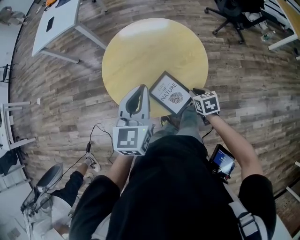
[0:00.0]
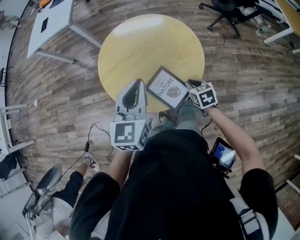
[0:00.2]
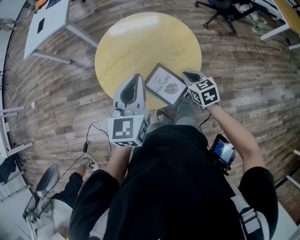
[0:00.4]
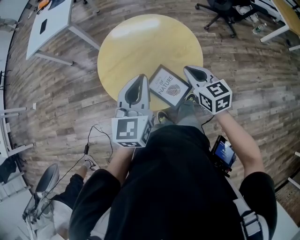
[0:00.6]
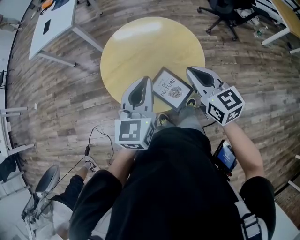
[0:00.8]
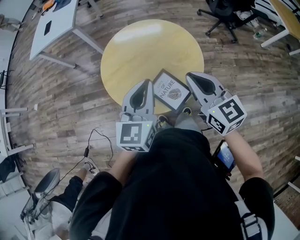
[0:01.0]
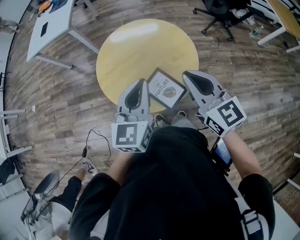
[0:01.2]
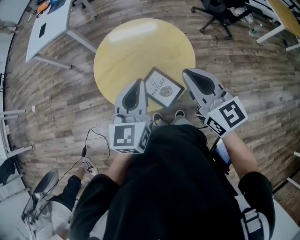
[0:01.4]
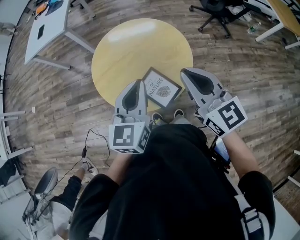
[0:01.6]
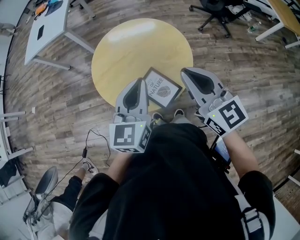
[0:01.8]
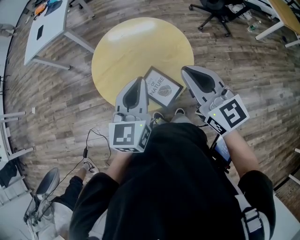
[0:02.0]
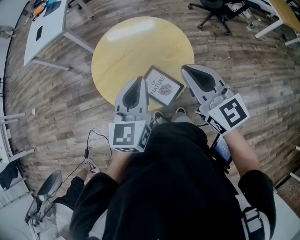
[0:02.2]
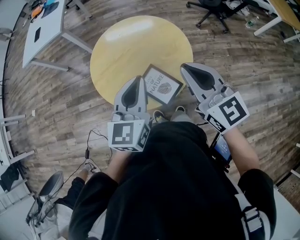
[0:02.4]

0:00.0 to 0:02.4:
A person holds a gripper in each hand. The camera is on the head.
0:00.0 to 0:01.2: The right gripper moves upward, roughly 30 cm, and tilts its fingers roughly 40 degrees upward.
0:01.2 to 0:02.4: The grippers move only a little.

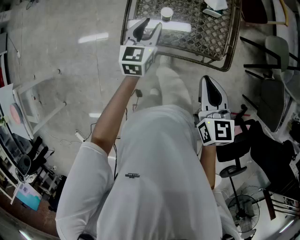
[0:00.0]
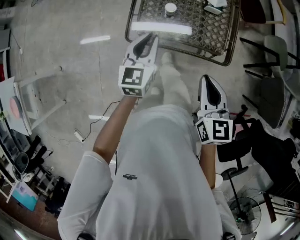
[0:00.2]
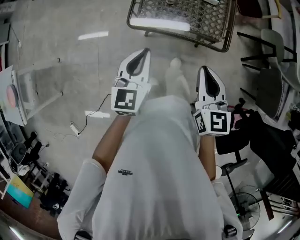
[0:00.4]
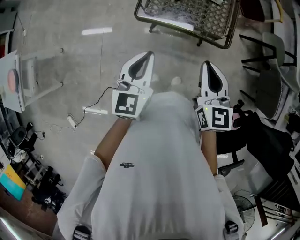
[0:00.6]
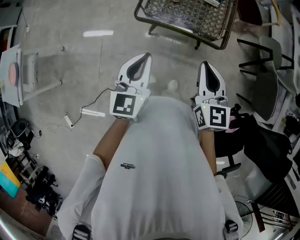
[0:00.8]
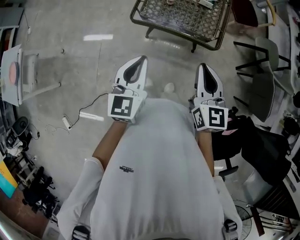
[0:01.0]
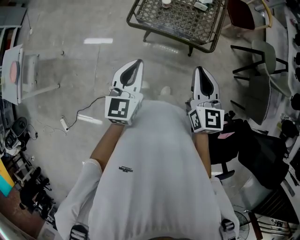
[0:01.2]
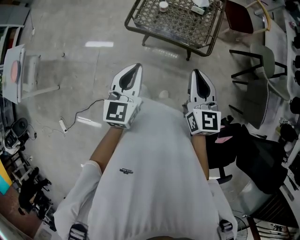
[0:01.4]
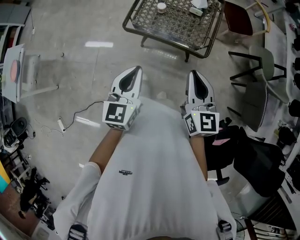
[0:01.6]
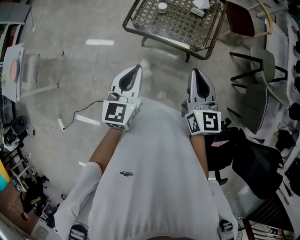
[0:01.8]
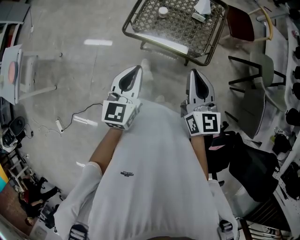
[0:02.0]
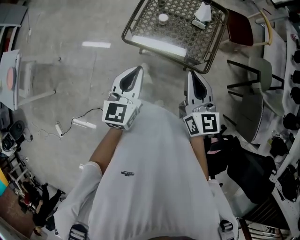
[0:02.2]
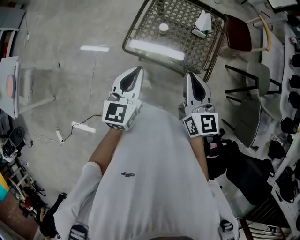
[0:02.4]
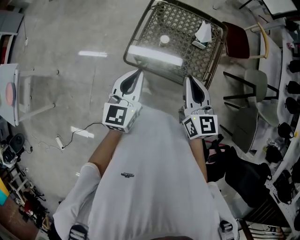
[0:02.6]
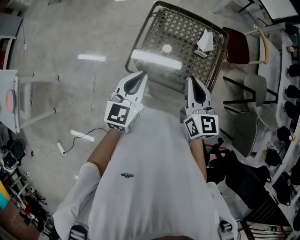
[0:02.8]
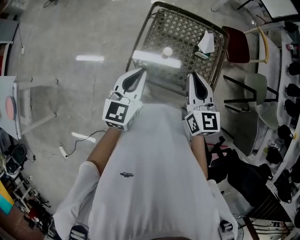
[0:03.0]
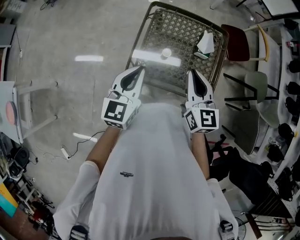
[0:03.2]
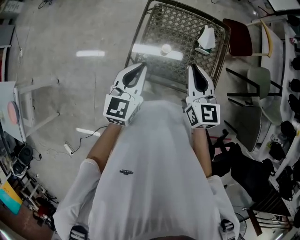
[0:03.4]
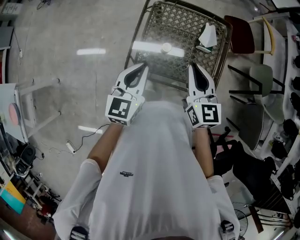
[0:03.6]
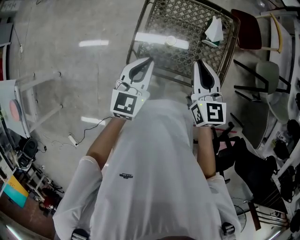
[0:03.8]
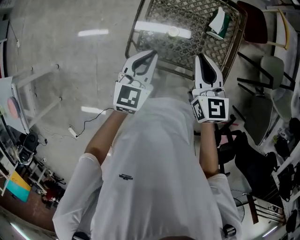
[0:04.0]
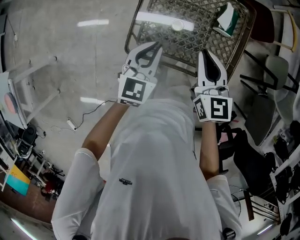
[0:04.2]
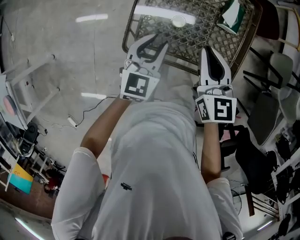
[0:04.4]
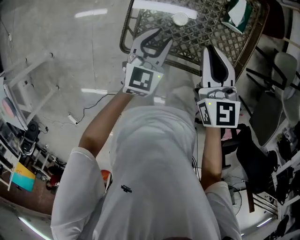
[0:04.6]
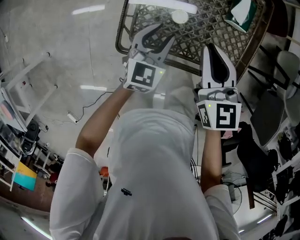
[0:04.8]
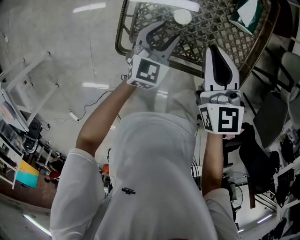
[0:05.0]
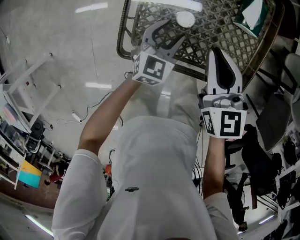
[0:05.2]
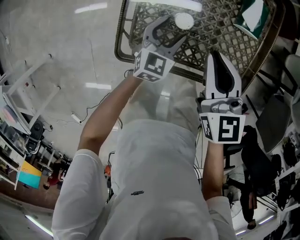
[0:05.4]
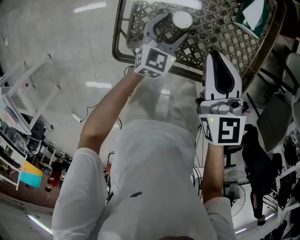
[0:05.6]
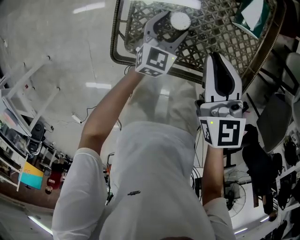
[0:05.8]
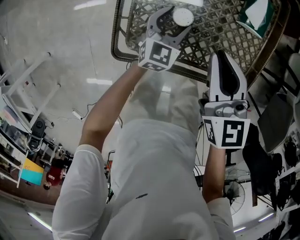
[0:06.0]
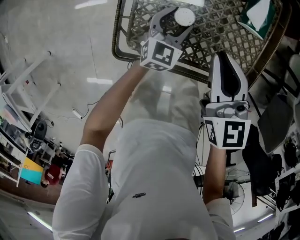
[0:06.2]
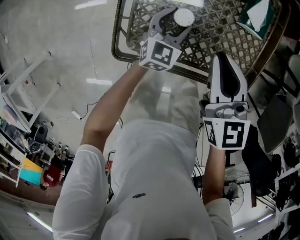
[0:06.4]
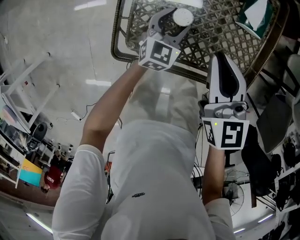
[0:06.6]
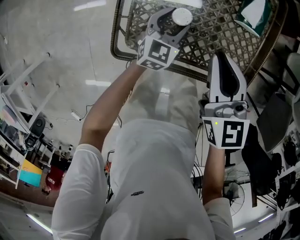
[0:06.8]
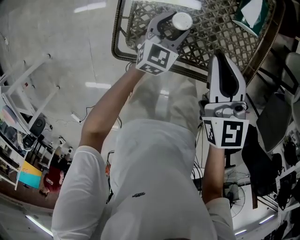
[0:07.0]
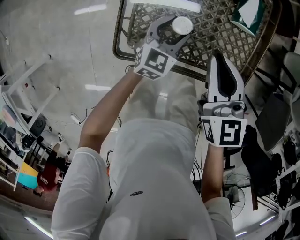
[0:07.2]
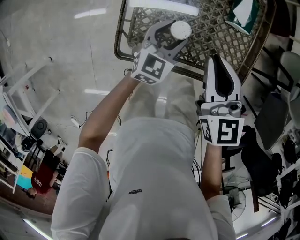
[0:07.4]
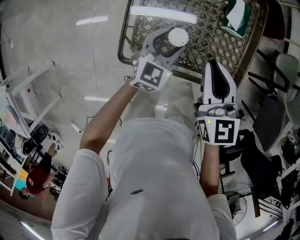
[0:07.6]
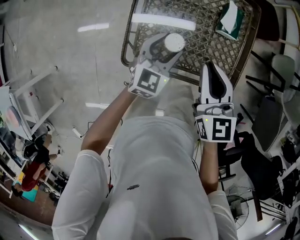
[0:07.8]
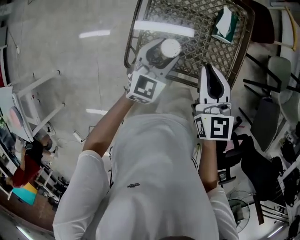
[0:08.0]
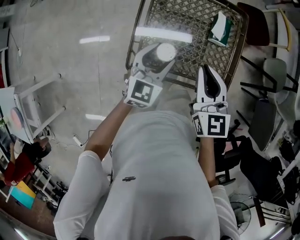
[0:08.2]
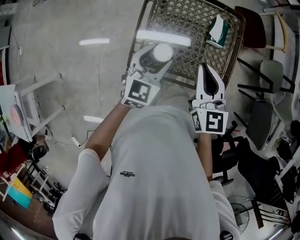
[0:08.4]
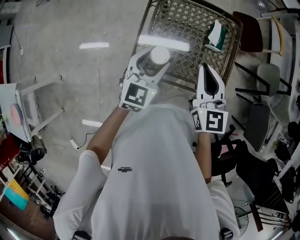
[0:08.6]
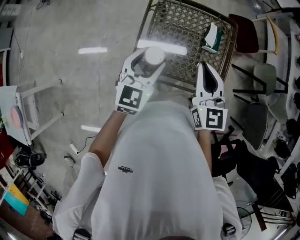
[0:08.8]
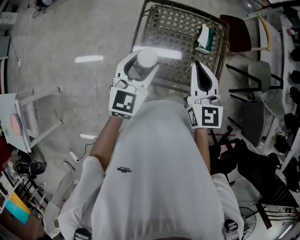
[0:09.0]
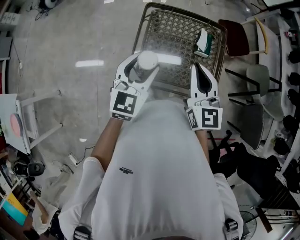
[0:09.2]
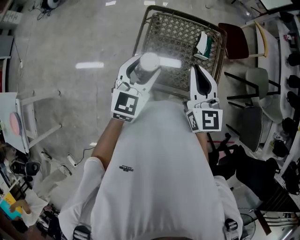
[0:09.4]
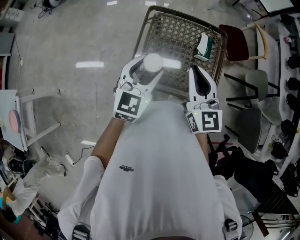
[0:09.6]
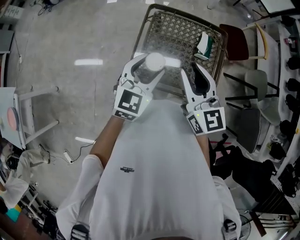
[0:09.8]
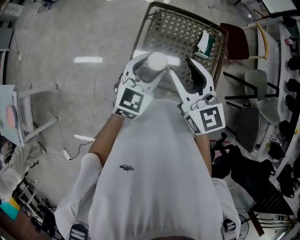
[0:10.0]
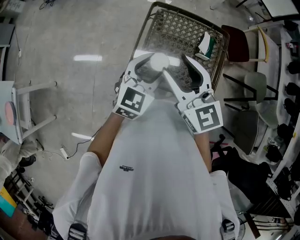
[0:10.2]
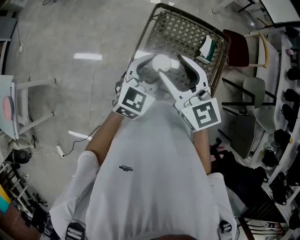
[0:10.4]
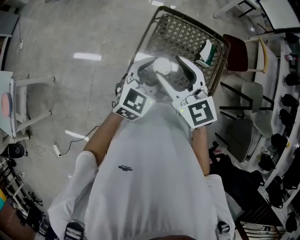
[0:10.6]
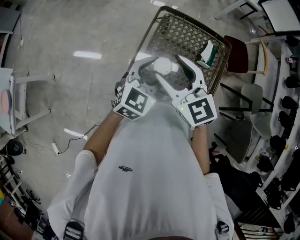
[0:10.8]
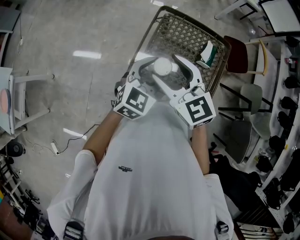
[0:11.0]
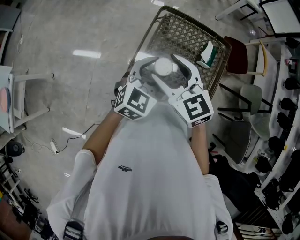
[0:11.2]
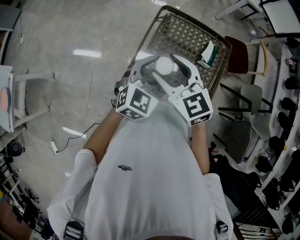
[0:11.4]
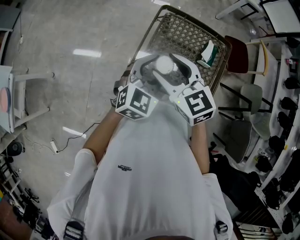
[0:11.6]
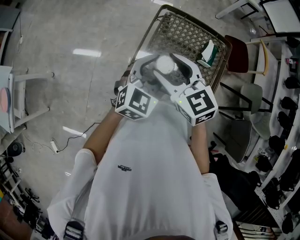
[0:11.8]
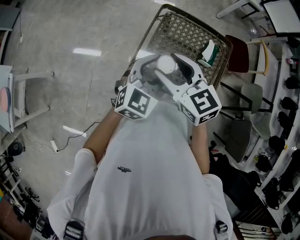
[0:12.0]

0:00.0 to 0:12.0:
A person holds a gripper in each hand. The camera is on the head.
0:00.0 to 0:01.6: The left gripper is displaced backward and upward by some 40 cm, and closes its fingers. Meanwhile the right gripper moves backward and upward, some 20 cm.
0:01.6 to 0:03.0: The grippers both shift forward by some 30 cm.
0:03.0 to 0:04.4: The grippers both shift downward and forward by roughly 20 cm.
0:04.4 to 0:06.0: The right gripper travels downward by about 10 cm. Meanwhile the left gripper is displaced downward and forward by about 20 cm, and opens.
0:06.0 to 0:07.6: The right gripper heads upward, covering some 5 cm; the left gripper shifts approximately 10 cm upward.
0:07.6 to 0:09.0: The left gripper travels upward by about 25 cm, while the right gripper heads upward, covering roughly 15 cm.
0:09.0 to 0:10.4: The right gripper is displaced to the left by roughly 10 cm, swivels some 30 degrees, and opens up.
0:10.4 to 0:12.0: The grippers move only a little.

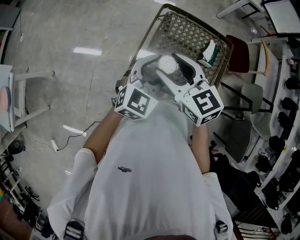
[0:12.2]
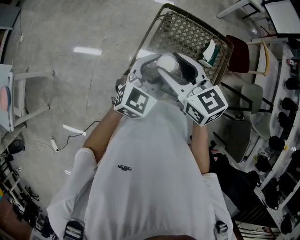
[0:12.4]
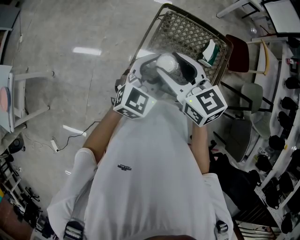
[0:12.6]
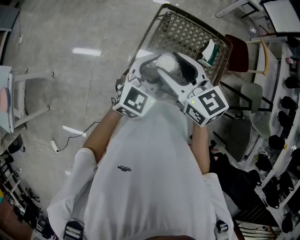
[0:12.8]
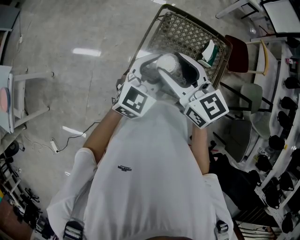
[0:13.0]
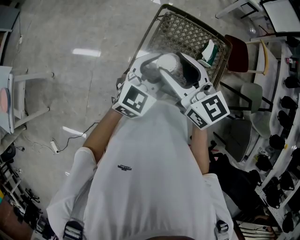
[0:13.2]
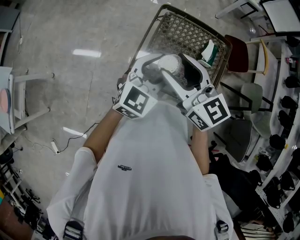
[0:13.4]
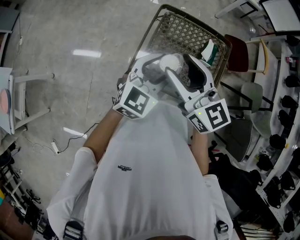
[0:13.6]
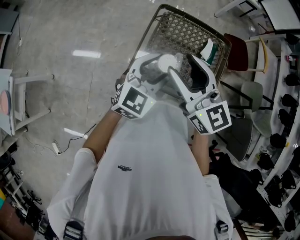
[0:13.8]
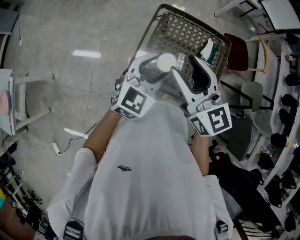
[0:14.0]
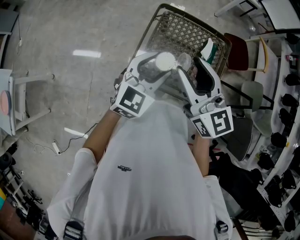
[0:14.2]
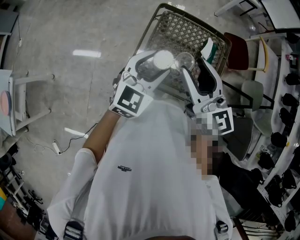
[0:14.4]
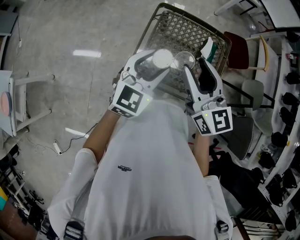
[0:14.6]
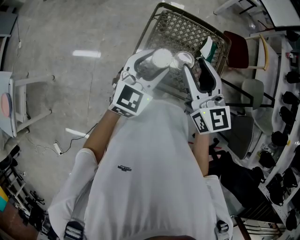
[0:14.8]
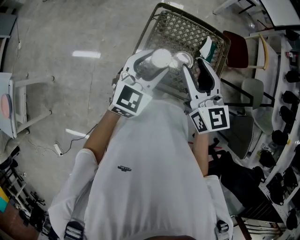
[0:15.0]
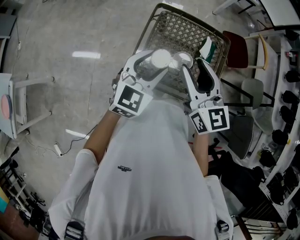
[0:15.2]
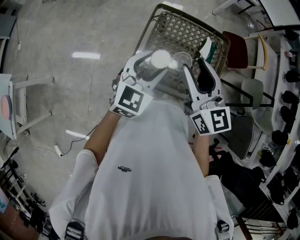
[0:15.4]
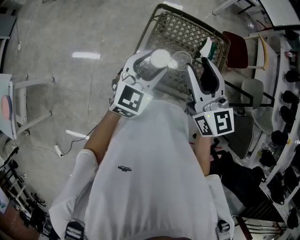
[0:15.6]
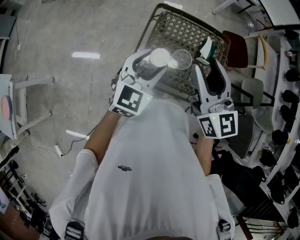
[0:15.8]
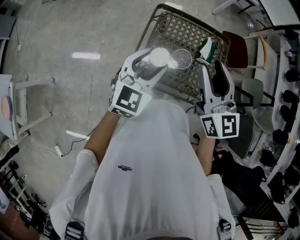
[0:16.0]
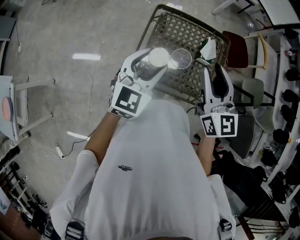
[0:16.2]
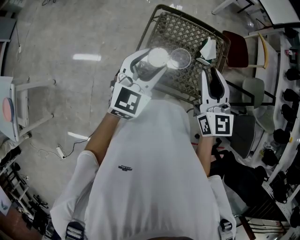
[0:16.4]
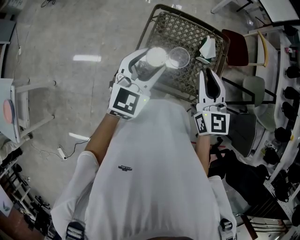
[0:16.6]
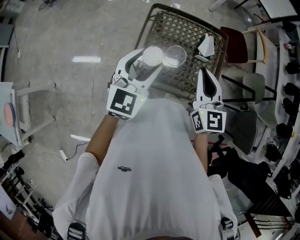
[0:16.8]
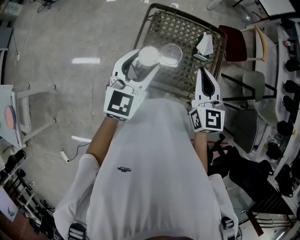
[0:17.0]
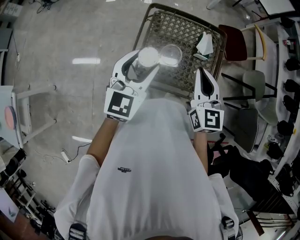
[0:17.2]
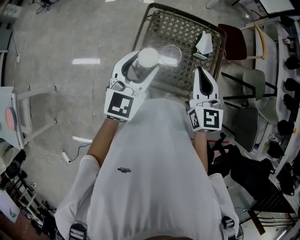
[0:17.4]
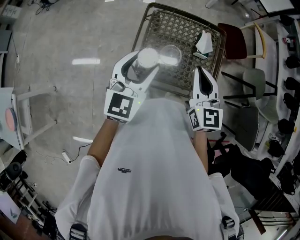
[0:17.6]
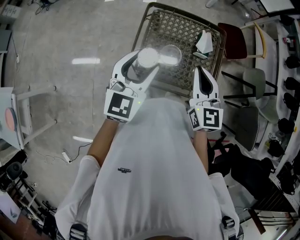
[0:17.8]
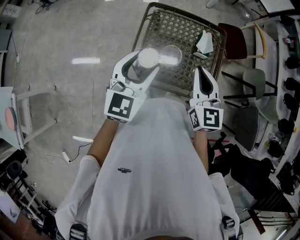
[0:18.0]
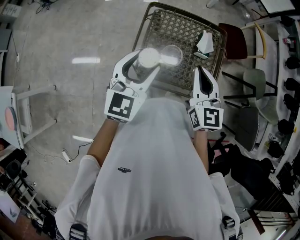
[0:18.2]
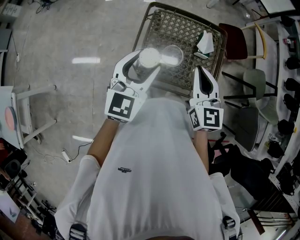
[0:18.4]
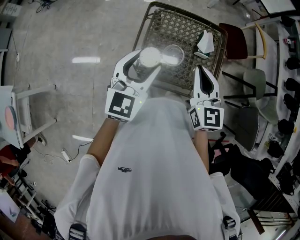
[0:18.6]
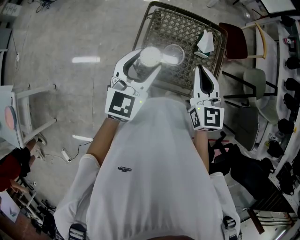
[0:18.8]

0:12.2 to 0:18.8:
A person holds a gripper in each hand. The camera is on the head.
0:12.2 to 0:13.8: The right gripper travels upward by about 5 cm.
0:13.8 to 0:15.4: The right gripper changes place by roughly 5 cm.
0:15.4 to 0:17.2: The right gripper moves to the right and downward, roughly 10 cm, and closes.
0:17.2 to 0:18.8: Neither gripper changes place.

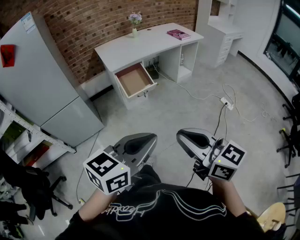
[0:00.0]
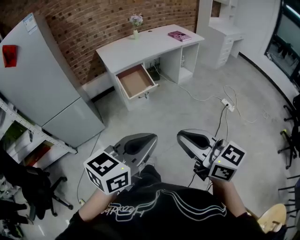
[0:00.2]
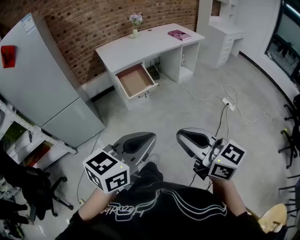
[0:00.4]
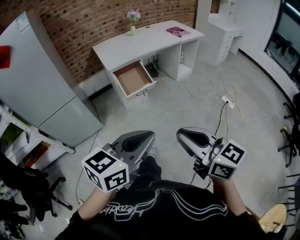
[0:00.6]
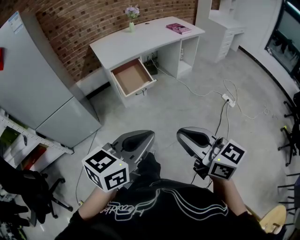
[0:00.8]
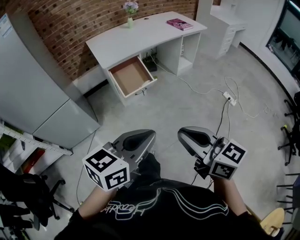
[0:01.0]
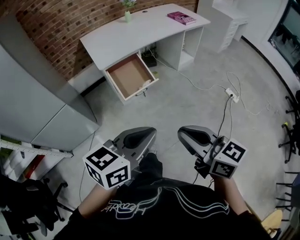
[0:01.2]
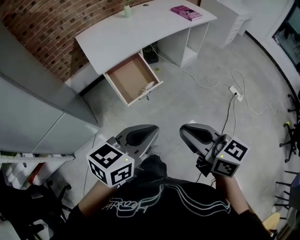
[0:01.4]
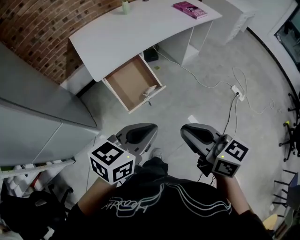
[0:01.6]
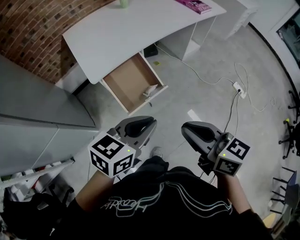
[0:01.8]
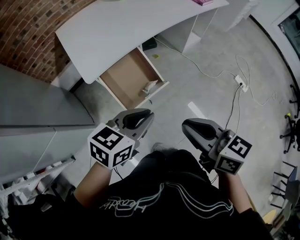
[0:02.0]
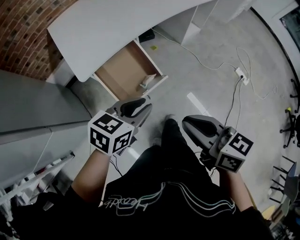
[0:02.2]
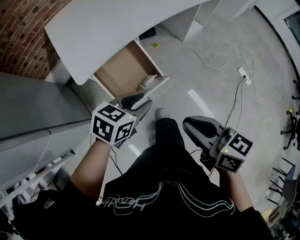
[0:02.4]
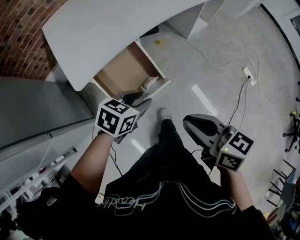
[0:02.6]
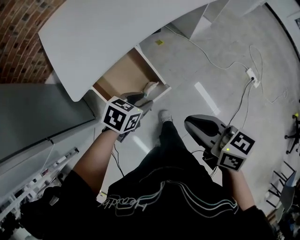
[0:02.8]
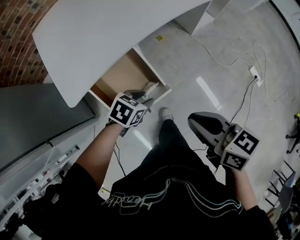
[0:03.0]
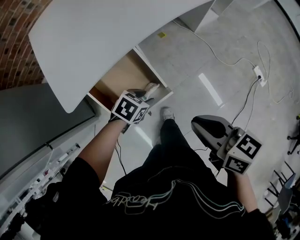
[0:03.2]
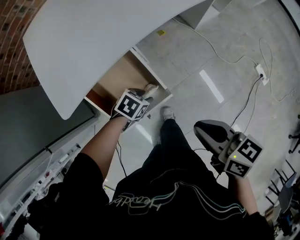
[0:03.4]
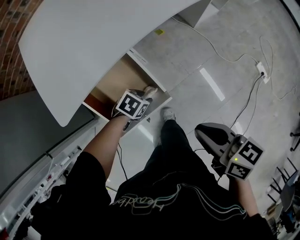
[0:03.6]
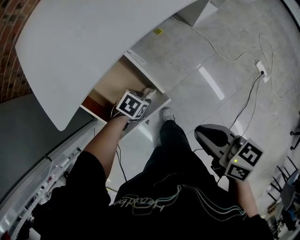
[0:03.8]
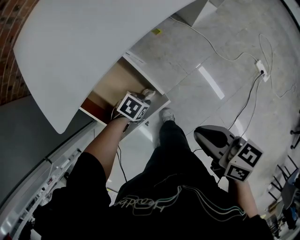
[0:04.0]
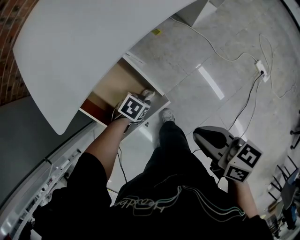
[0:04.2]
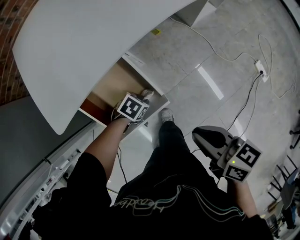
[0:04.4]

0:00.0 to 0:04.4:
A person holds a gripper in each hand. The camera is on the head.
0:00.0 to 0:01.4: Both grippers travel together forward, approximately 40 cm.
0:01.4 to 0:03.0: Both grippers are carried some 40 cm. The left gripper tilts its fingers about 40 degrees downward, and opens its fingers. The right gripper swivels about 20 degrees.
0:03.0 to 0:04.4: The left gripper travels downward by approximately 20 cm; the right gripper moves downward, some 10 cm.
